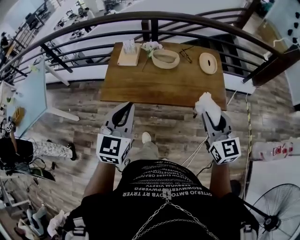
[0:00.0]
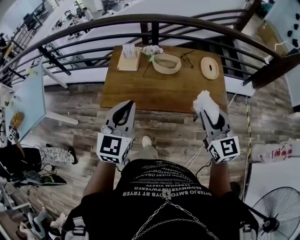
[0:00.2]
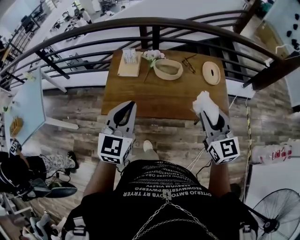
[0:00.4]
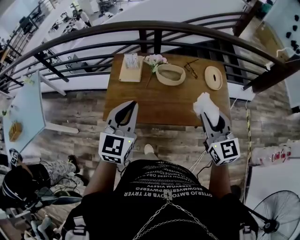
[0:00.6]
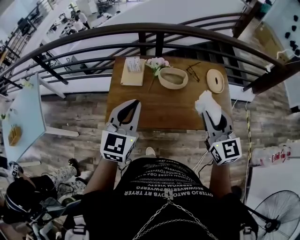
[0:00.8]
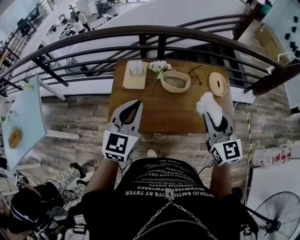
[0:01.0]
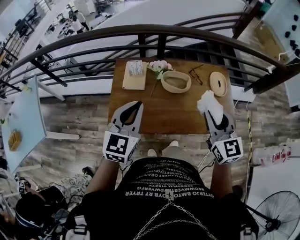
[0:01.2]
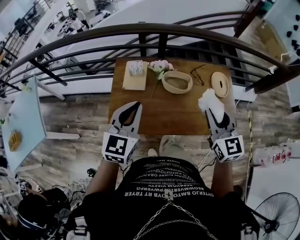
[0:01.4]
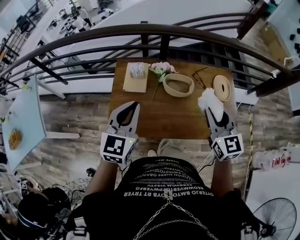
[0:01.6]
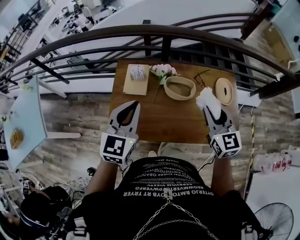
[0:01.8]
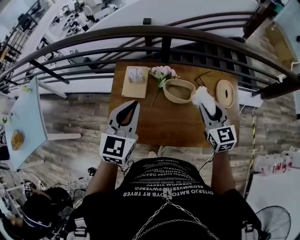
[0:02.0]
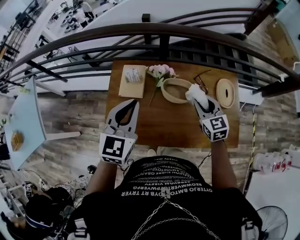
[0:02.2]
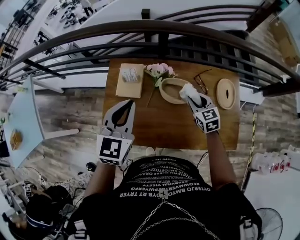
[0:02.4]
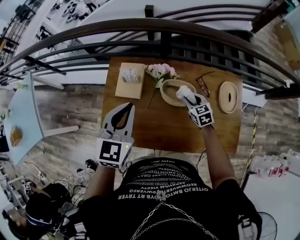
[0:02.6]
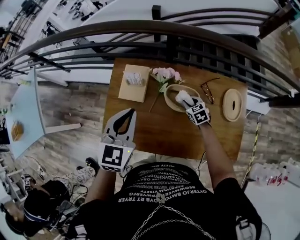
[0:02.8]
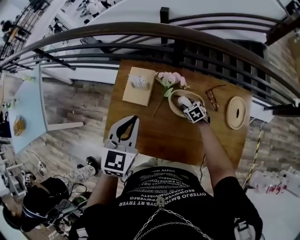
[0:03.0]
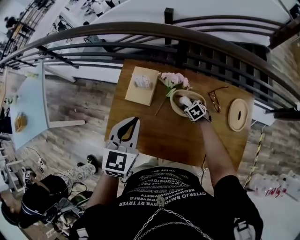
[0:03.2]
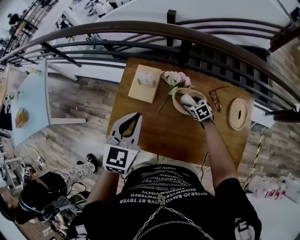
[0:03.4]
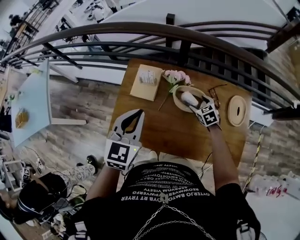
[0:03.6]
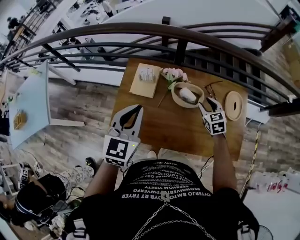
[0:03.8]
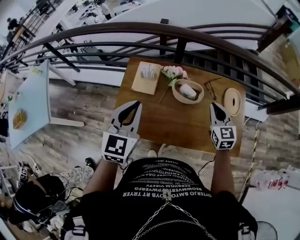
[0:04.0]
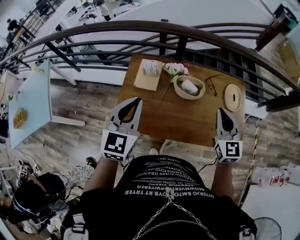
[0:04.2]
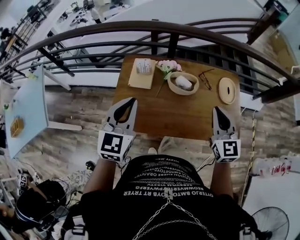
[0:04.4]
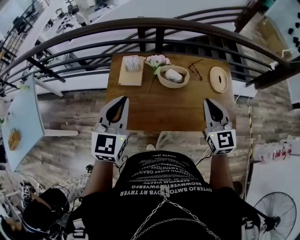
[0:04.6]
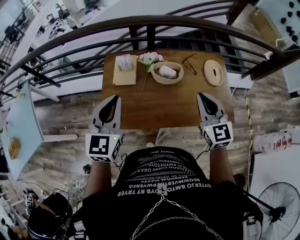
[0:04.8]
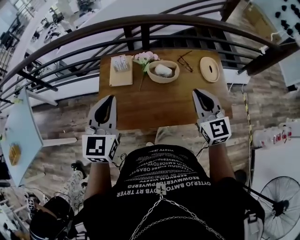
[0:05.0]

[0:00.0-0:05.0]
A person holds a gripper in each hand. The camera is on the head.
0:00.0 to 0:01.6: The right gripper travels forward and to the left by approximately 30 cm; the left gripper shifts about 25 cm forward.
0:01.6 to 0:03.4: The right gripper moves downward and forward, about 50 cm, angles its fingers downward, by some 50 degrees, and opens, while the left gripper shifts approximately 15 cm forward and downward.
0:03.4 to 0:05.0: The right gripper shifts roughly 50 cm upward and backward, points its fingers about 50 degrees further upward, and closes its fingers; the left gripper travels backward and upward by roughly 15 cm.

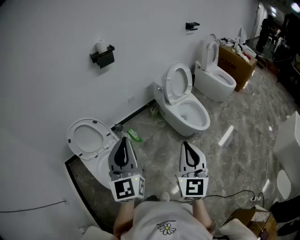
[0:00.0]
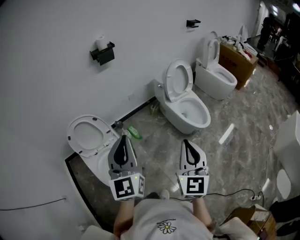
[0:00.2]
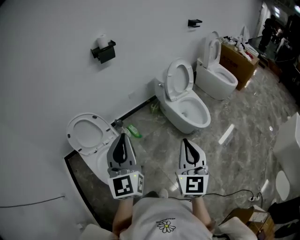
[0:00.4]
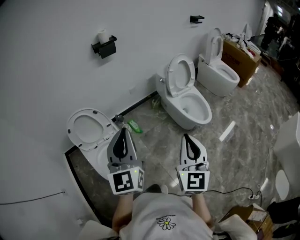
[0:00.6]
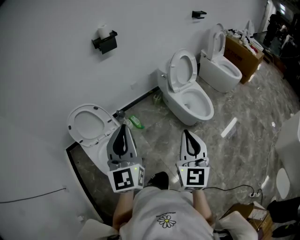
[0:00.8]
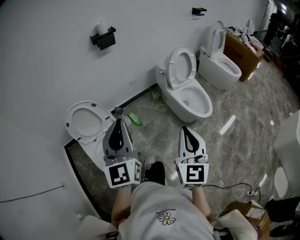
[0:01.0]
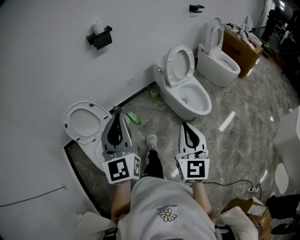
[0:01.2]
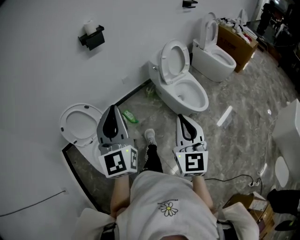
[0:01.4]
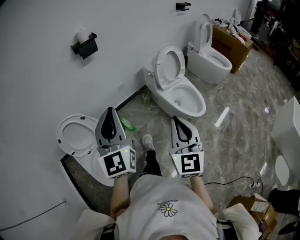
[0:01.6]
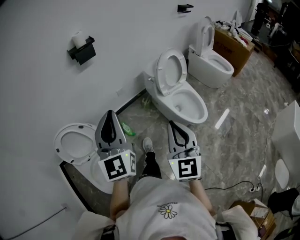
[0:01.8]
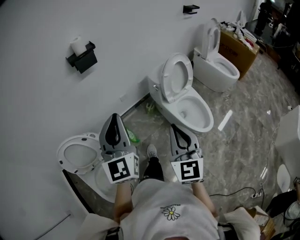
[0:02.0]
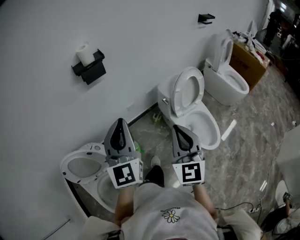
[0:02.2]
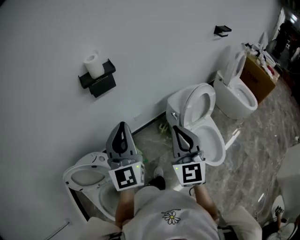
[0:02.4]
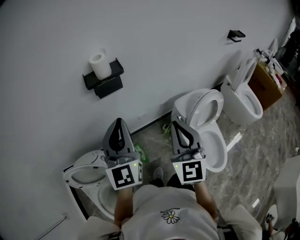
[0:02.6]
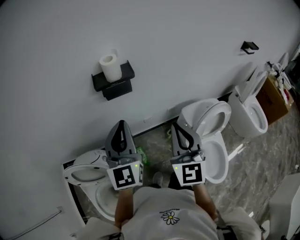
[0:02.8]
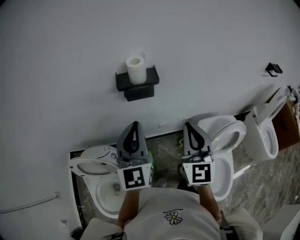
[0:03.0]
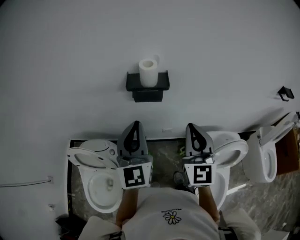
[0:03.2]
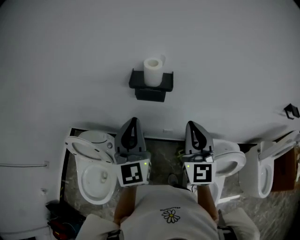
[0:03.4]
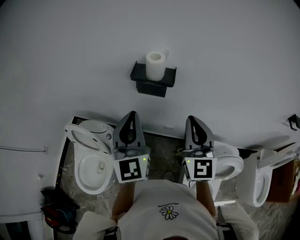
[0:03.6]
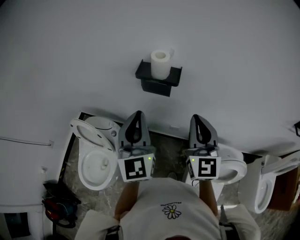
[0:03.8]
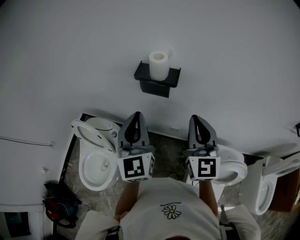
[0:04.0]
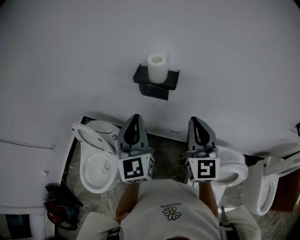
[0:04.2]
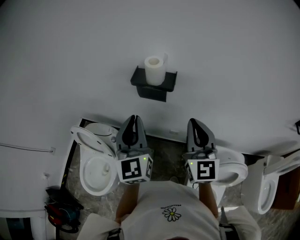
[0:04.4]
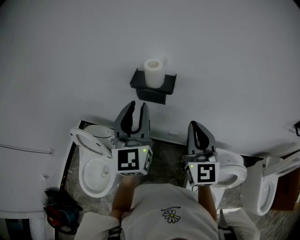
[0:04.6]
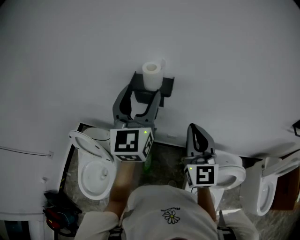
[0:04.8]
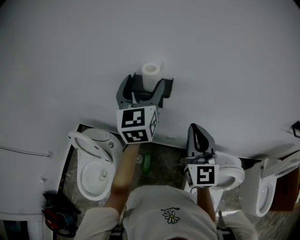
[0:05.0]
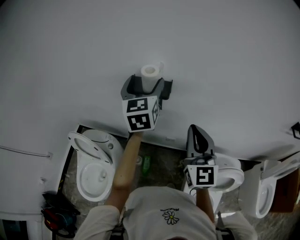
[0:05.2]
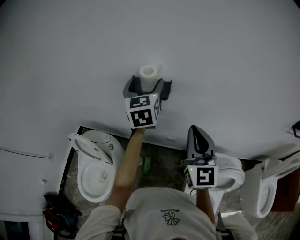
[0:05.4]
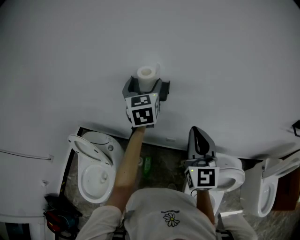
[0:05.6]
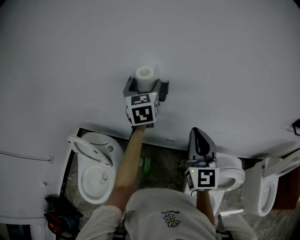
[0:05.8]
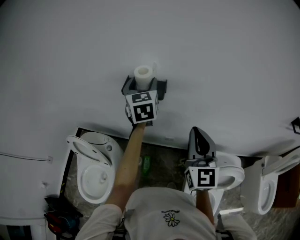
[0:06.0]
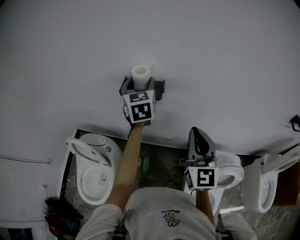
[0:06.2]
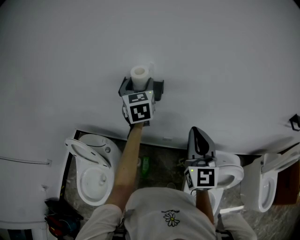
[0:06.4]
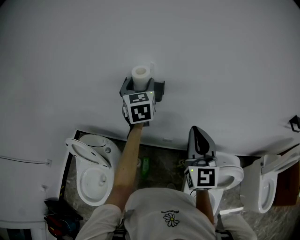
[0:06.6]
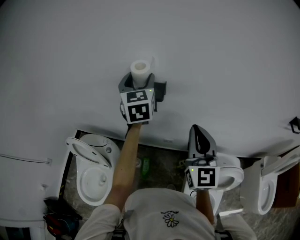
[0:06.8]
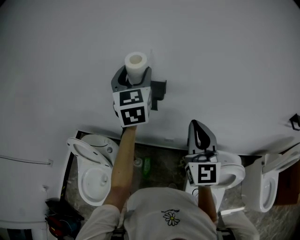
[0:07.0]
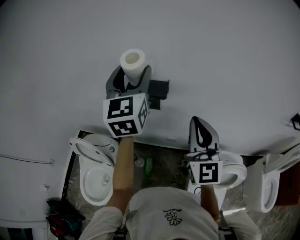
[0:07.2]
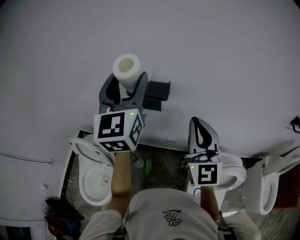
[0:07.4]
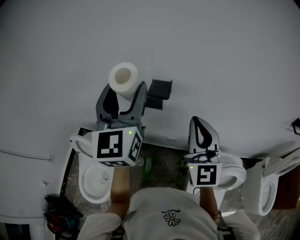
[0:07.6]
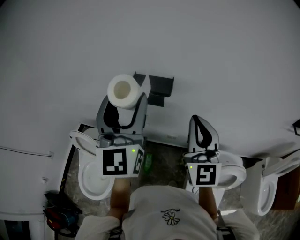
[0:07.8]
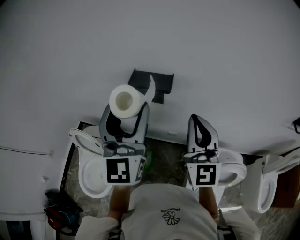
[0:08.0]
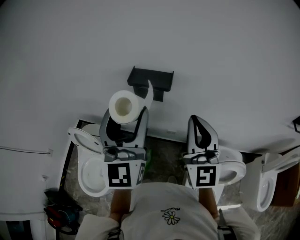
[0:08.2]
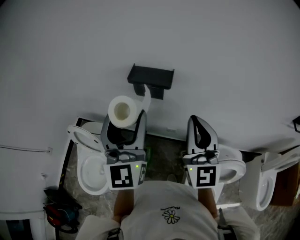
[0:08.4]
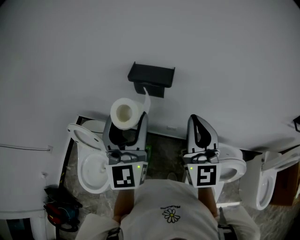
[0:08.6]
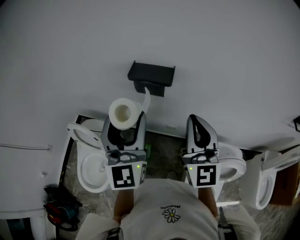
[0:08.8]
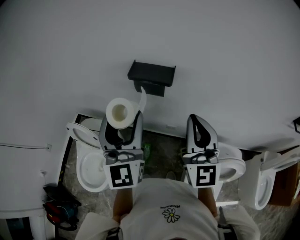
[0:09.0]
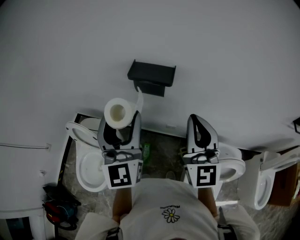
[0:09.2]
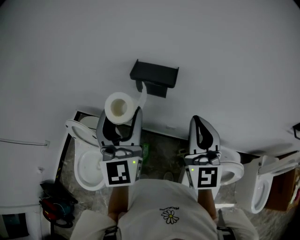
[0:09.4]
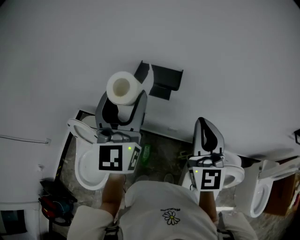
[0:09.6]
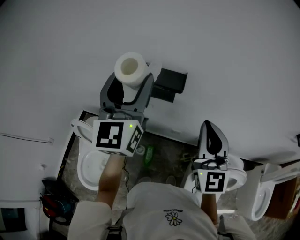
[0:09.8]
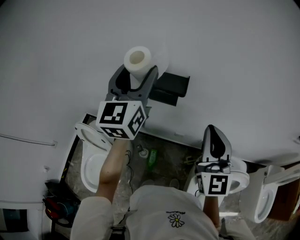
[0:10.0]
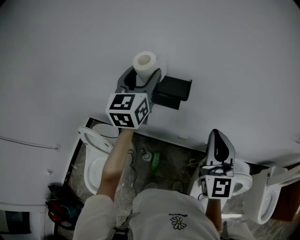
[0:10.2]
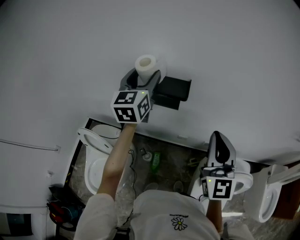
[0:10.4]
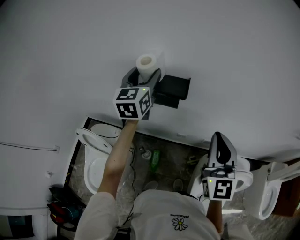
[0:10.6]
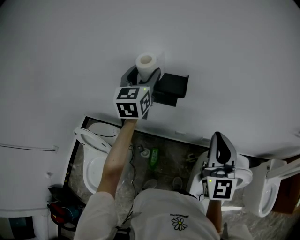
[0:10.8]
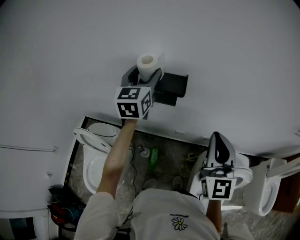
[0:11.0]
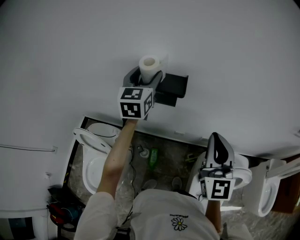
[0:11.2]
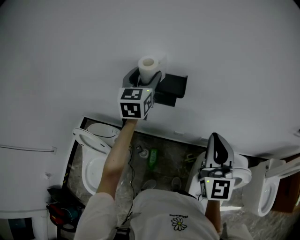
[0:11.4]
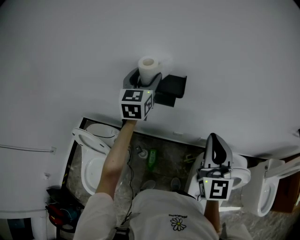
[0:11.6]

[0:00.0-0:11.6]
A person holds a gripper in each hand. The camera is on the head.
0:00.0 to 0:01.4: Both grippers travel together forward, some 5 cm.
0:01.4 to 0:02.8: Both grippers are carried forward, about 50 cm. The right gripper rotates roughly 20 degrees.
0:02.8 to 0:04.4: The left gripper rotates some 30 degrees. The right gripper changes place by some 15 cm, and rotates roughly 30 degrees.
0:04.4 to 0:05.8: The left gripper is displaced forward by approximately 20 cm, and opens.
0:05.8 to 0:07.2: The left gripper moves upward and backward, roughly 15 cm. The right gripper is displaced upward by roughly 5 cm.
0:07.2 to 0:08.8: The left gripper travels backward and downward by approximately 15 cm.
0:08.8 to 0:10.2: The left gripper travels forward by approximately 20 cm.
0:10.2 to 0:11.6: The left gripper shifts about 10 cm downward and forward.

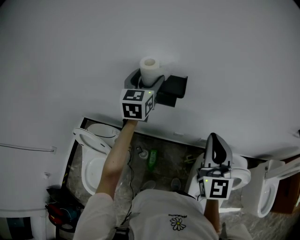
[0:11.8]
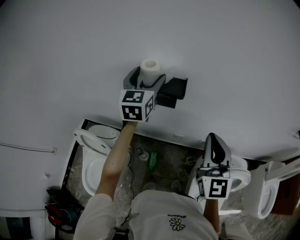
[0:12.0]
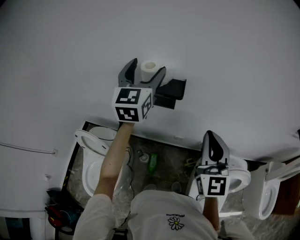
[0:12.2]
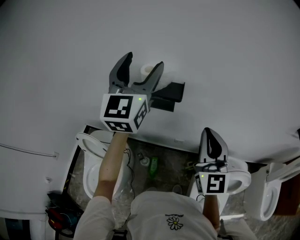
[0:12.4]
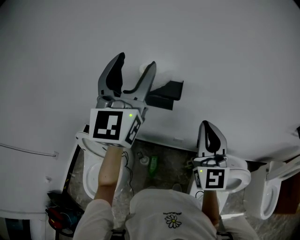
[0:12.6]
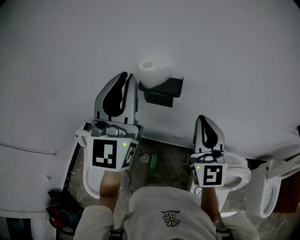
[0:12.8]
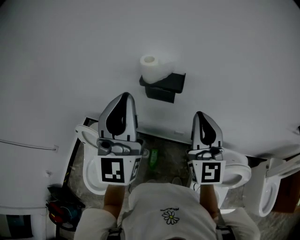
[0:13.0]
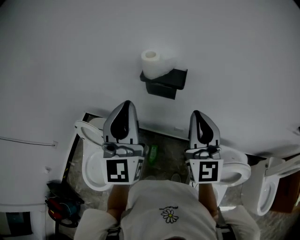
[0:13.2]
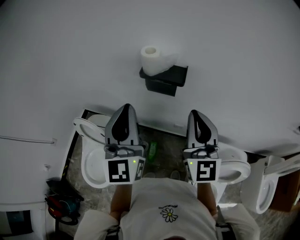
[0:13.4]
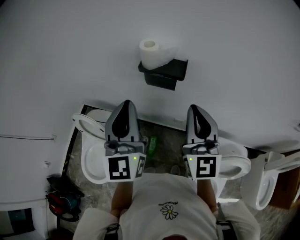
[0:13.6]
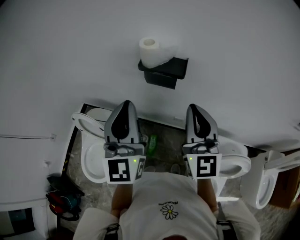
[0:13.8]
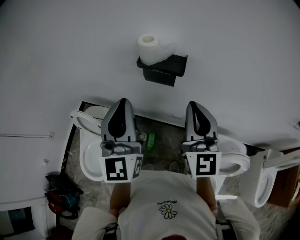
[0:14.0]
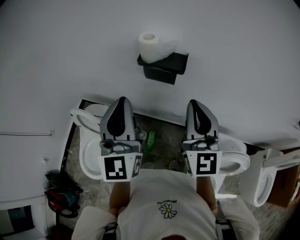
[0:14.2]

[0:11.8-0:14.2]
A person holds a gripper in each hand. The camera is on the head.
0:11.8 to 0:13.0: The right gripper shifts approximately 5 cm upward; the left gripper moves backward and upward, approximately 25 cm, tips its fingers upward by some 30 degrees, and closes its fingers.
0:13.0 to 0:14.2: The left gripper shifts roughly 10 cm downward.

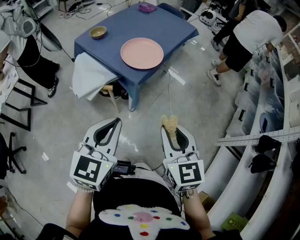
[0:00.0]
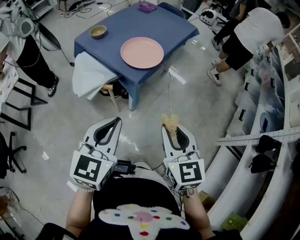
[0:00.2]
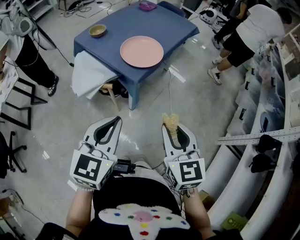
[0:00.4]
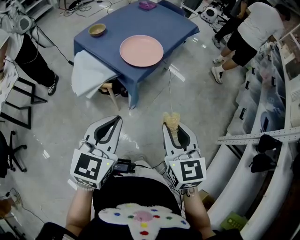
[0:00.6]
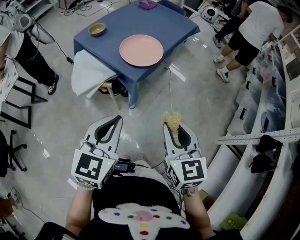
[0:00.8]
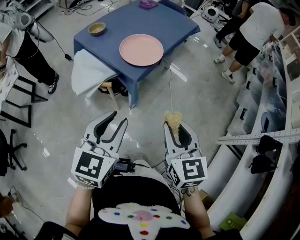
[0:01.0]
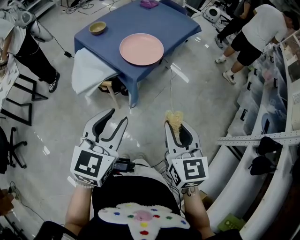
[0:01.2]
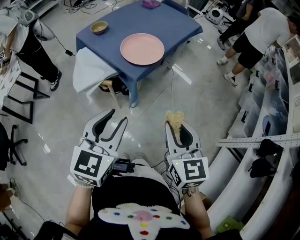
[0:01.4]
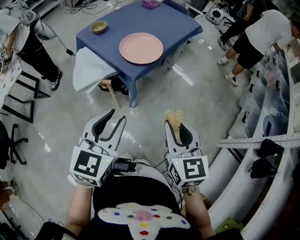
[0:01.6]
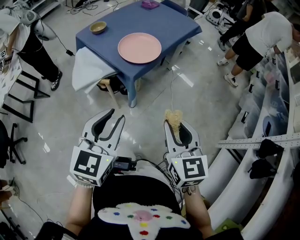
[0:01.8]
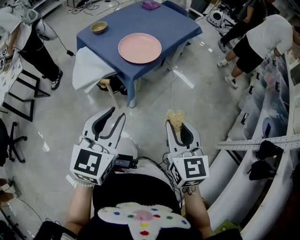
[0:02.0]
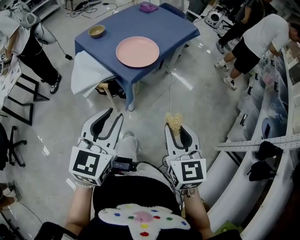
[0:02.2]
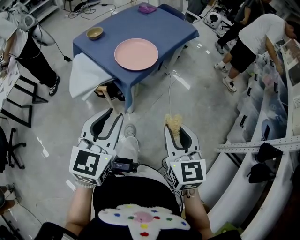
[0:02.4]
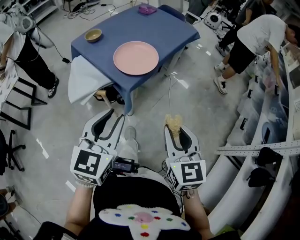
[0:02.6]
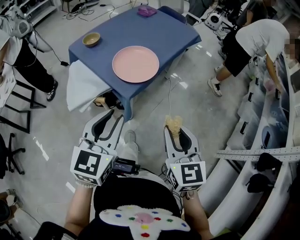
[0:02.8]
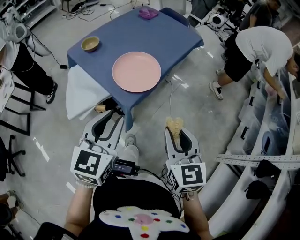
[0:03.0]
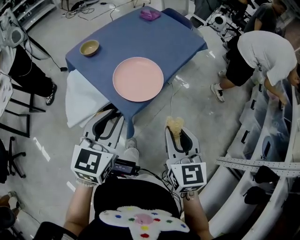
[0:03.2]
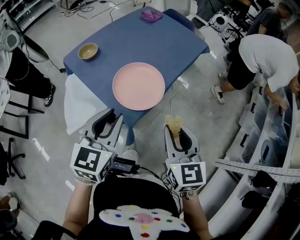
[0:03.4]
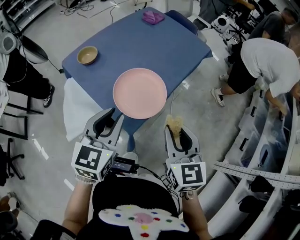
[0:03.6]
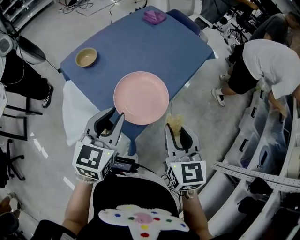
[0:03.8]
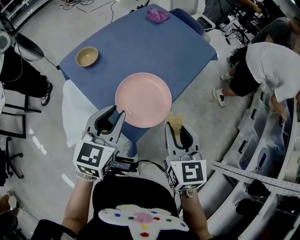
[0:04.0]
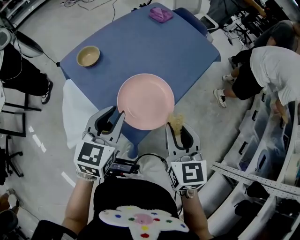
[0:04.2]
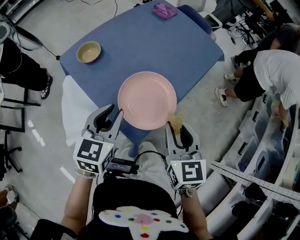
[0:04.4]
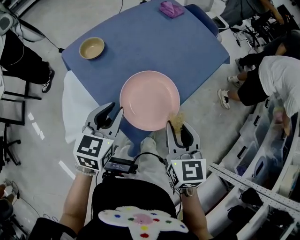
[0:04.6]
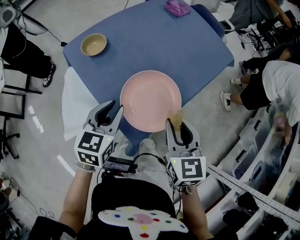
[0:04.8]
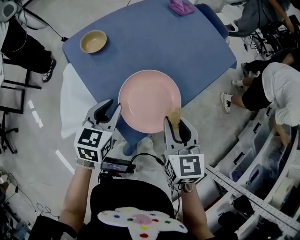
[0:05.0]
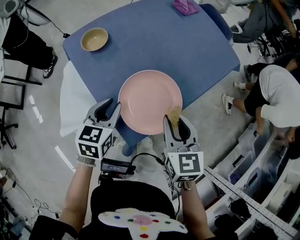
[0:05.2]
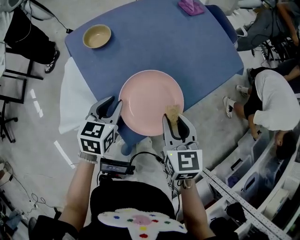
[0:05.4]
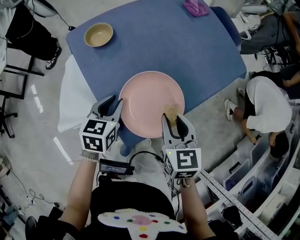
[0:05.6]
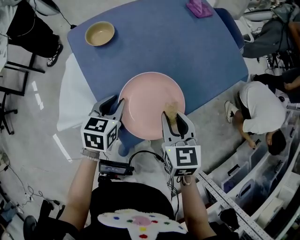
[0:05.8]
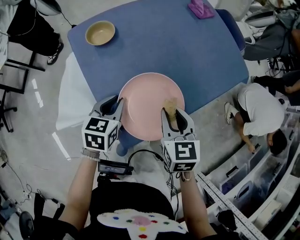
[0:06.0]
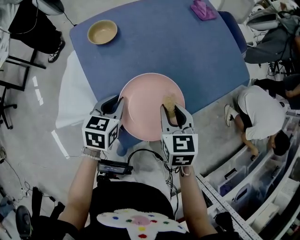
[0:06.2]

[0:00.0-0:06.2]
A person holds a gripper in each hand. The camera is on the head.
0:00.0 to 0:01.6: The left gripper opens, while the right gripper moves roughly 5 cm.
0:01.6 to 0:03.2: Both grippers travel together forward, some 20 cm.
0:03.2 to 0:04.6: The left gripper goes about 20 cm forward, downward and to the left; the right gripper is displaced forward by about 15 cm.
0:04.6 to 0:06.2: The right gripper heads forward and downward, covering some 15 cm, and swivels some 20 degrees; the left gripper heads downward, covering roughly 10 cm, and swivels roughly 20 degrees.
